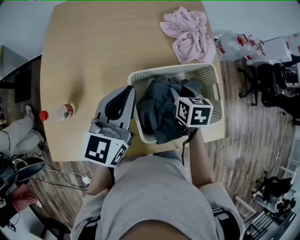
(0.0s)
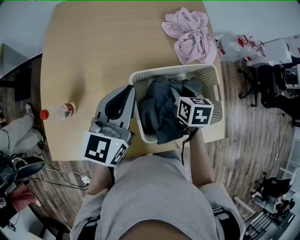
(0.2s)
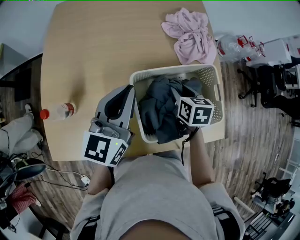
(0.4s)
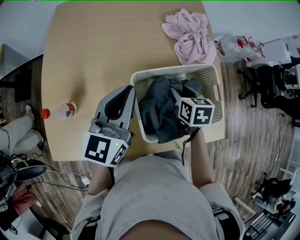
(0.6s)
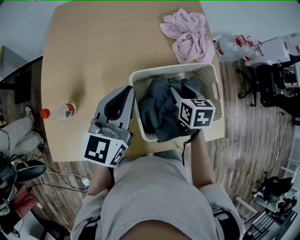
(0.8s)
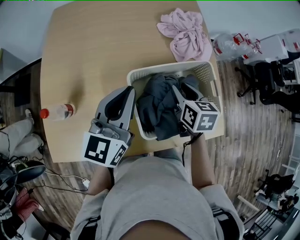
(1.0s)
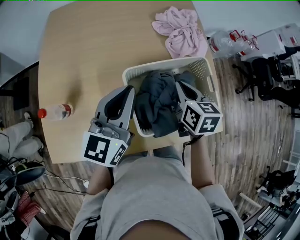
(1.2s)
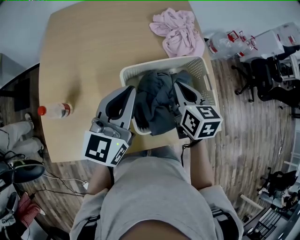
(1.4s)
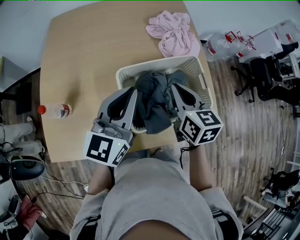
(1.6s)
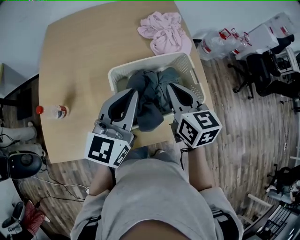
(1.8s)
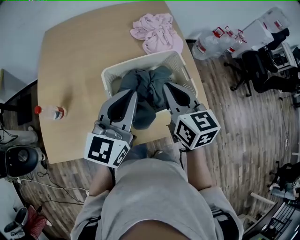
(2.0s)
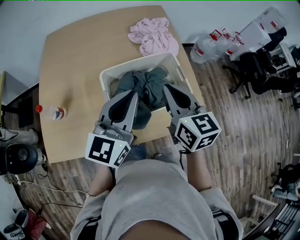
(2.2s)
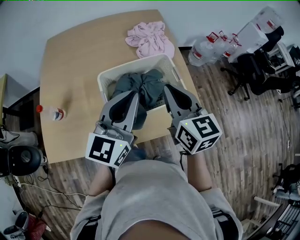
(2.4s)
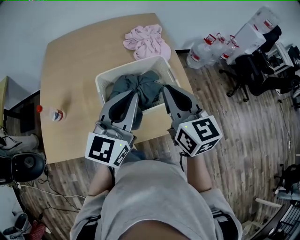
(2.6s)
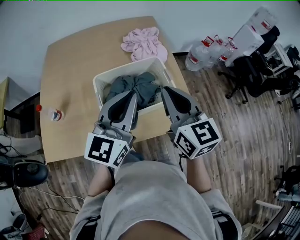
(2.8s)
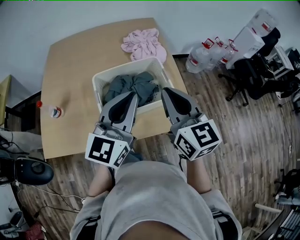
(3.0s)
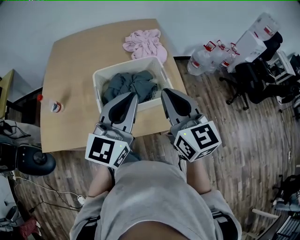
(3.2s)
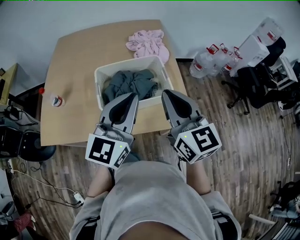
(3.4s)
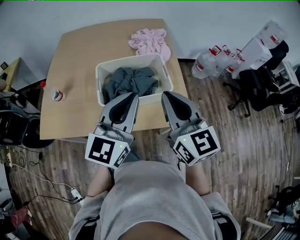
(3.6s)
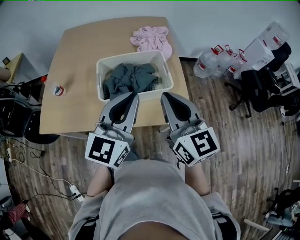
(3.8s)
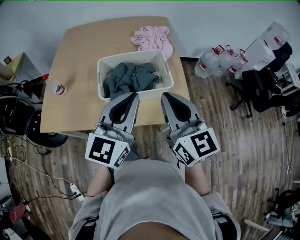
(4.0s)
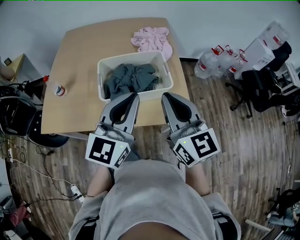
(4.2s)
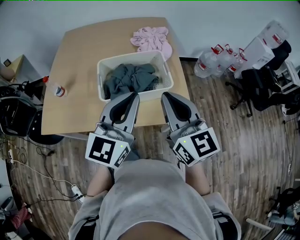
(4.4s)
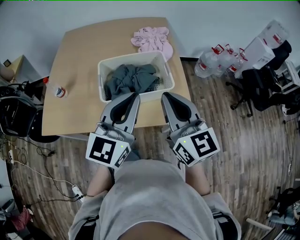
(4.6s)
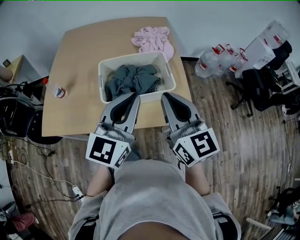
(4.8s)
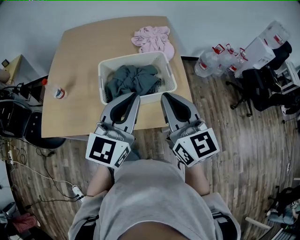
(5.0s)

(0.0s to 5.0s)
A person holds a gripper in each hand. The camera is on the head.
0.0s - 1.6s: The left gripper heads to the right, covering about 5 cm. The right gripper shifts roughly 15 cm upward and backward, swivels roughly 20 degrees, and closes its fingers.
1.6s - 3.4s: The right gripper heads backward, upward and to the right, covering approximately 25 cm, and swivels approximately 30 degrees. Meanwhile the left gripper travels to the right, backward and upward by approximately 25 cm.
3.4s - 5.0s: The grippers make only small movements.

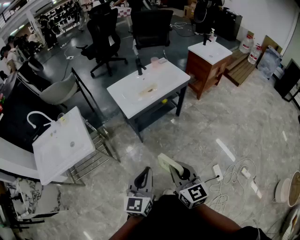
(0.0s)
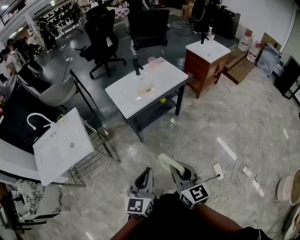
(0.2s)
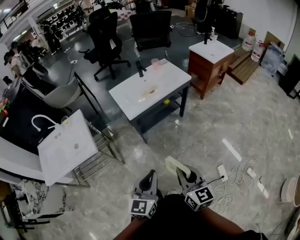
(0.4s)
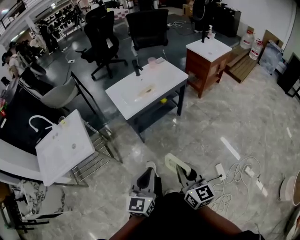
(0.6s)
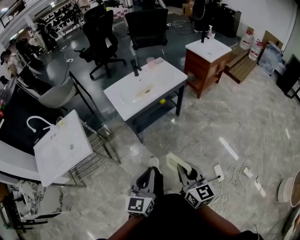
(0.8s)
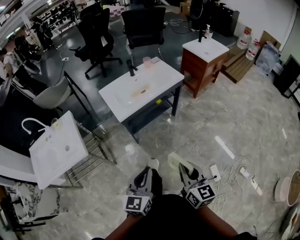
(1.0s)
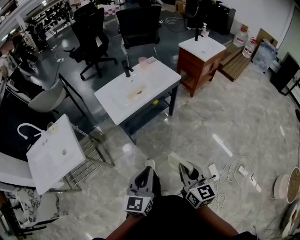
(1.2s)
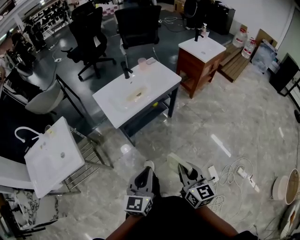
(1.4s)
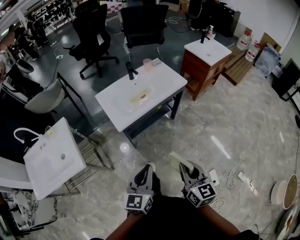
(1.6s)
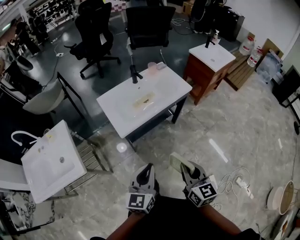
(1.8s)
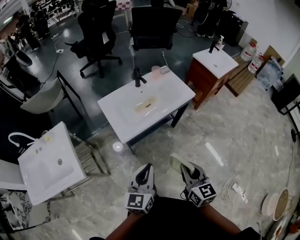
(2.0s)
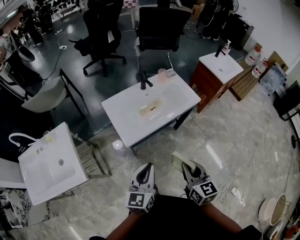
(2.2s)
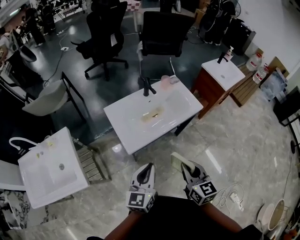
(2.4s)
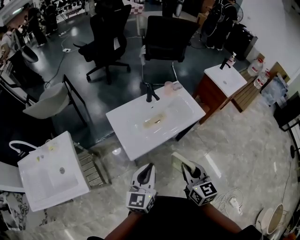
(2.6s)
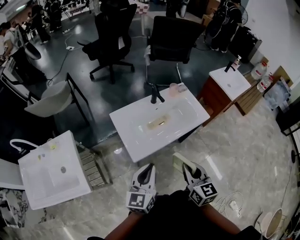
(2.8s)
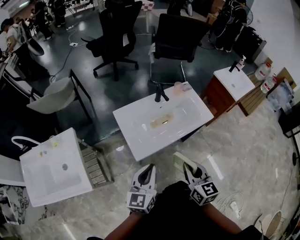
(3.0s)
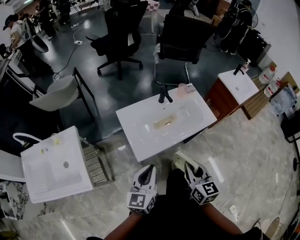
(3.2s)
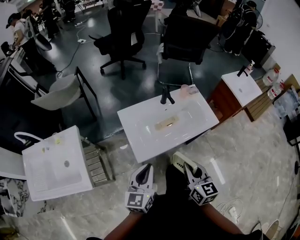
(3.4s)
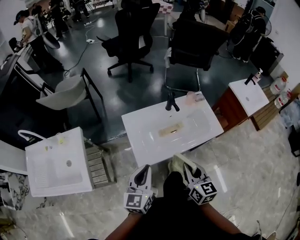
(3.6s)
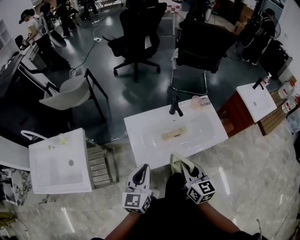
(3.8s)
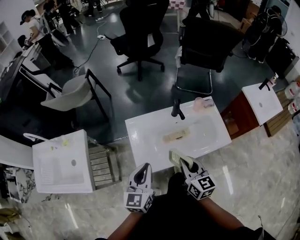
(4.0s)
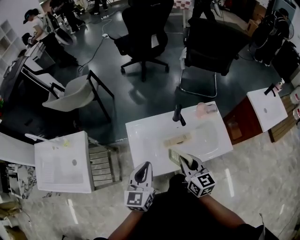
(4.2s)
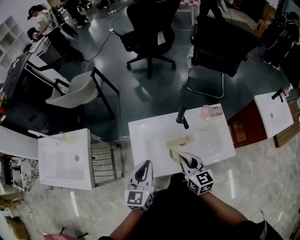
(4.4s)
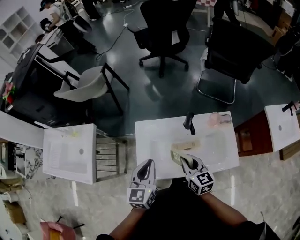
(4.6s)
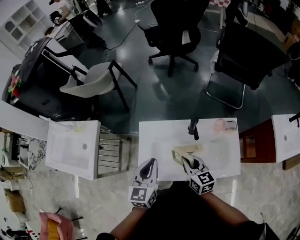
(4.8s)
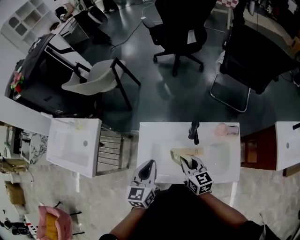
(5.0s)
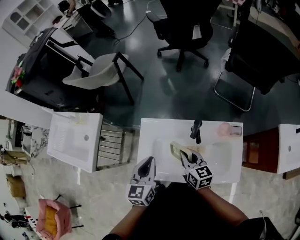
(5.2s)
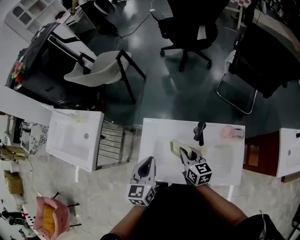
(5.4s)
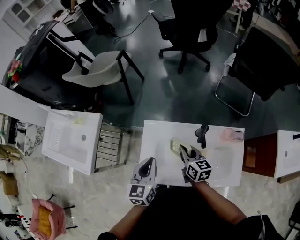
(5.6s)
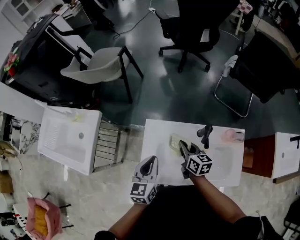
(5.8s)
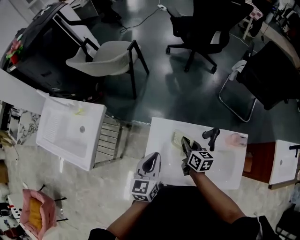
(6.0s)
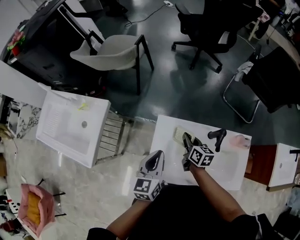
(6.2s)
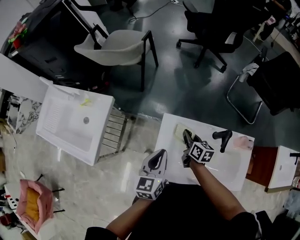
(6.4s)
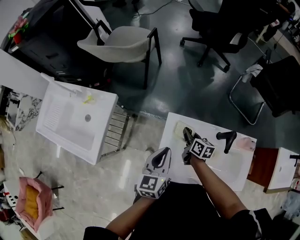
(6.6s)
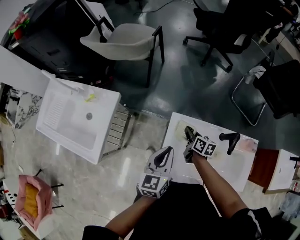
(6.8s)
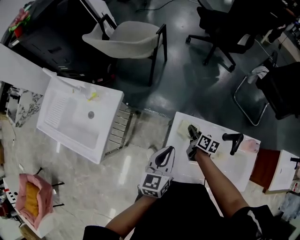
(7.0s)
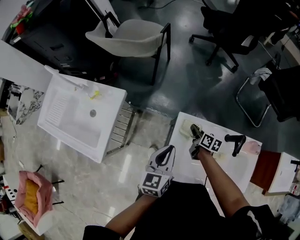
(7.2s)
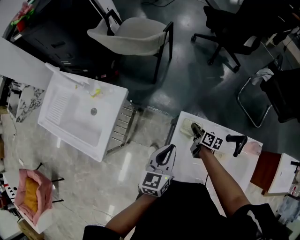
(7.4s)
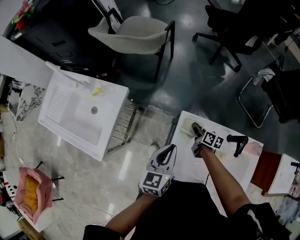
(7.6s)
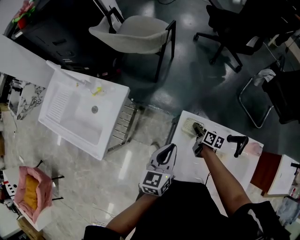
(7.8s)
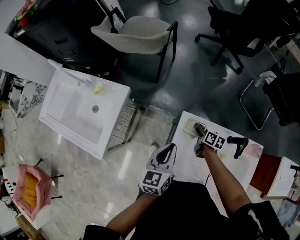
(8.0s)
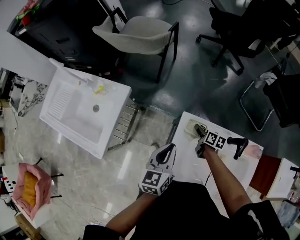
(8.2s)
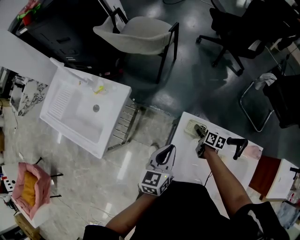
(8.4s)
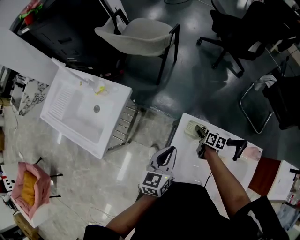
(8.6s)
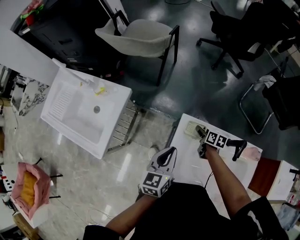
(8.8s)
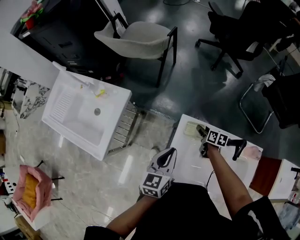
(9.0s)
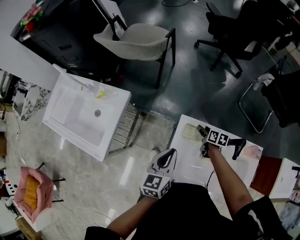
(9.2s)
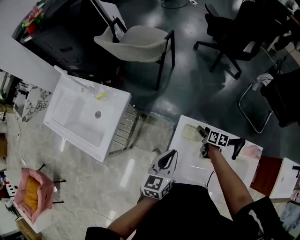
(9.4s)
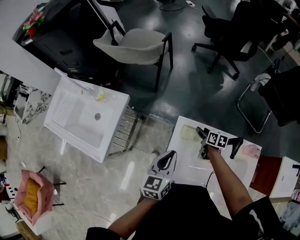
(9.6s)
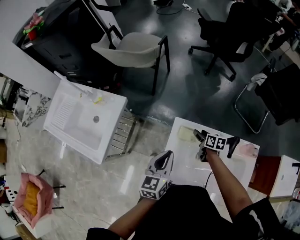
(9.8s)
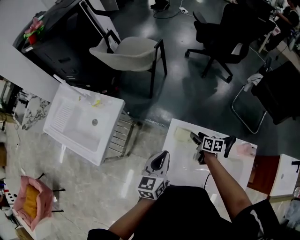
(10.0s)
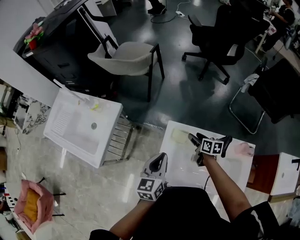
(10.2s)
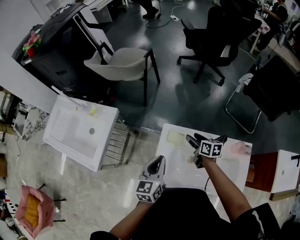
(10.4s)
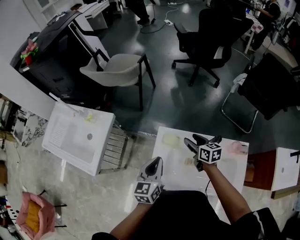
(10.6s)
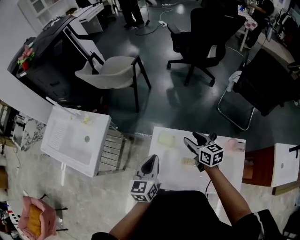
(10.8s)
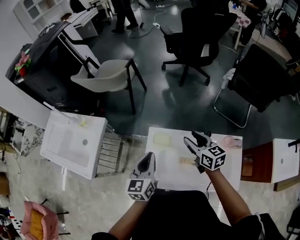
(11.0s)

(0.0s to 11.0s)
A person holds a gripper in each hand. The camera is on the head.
0.0s - 1.6s: The right gripper goes some 15 cm forward and to the right. Meanwhile the left gripper travels forward by some 15 cm.
1.6s - 3.2s: The right gripper heads forward, covering some 30 cm, while the left gripper travels forward and to the left by approximately 30 cm.
3.2s - 4.8s: The left gripper moves approximately 25 cm, and changes its angle by roughly 30 degrees. Meanwhile the right gripper ends up some 30 cm from where it was, and rotates approximately 40 degrees.
4.8s - 6.2s: The right gripper is displaced forward, downward and to the left by some 20 cm. The left gripper is displaced to the left, forward and downward by approximately 15 cm.
6.2s - 7.8s: The right gripper heads downward, forward and to the left, covering about 15 cm. The left gripper shifts approximately 10 cm to the left.
7.8s - 9.4s: The right gripper travels to the right by about 5 cm, and opens up.
9.4s - 11.0s: The left gripper is displaced to the right and upward by approximately 10 cm. Meanwhile the right gripper travels upward by about 25 cm, and rotates roughly 40 degrees.

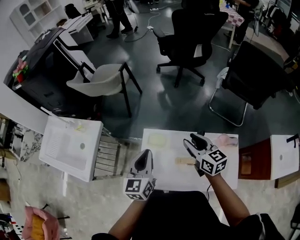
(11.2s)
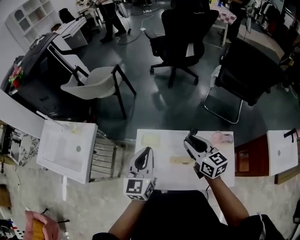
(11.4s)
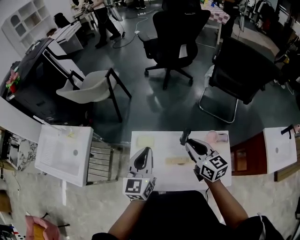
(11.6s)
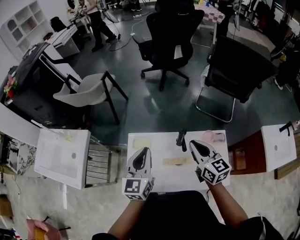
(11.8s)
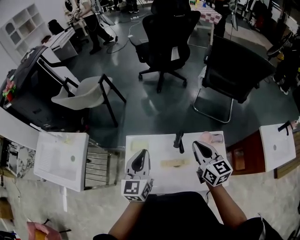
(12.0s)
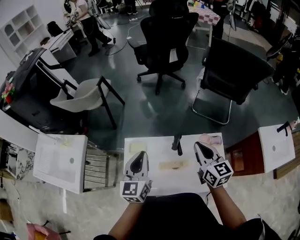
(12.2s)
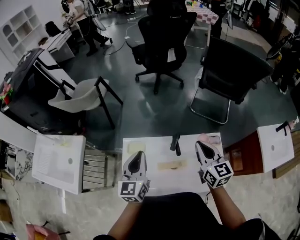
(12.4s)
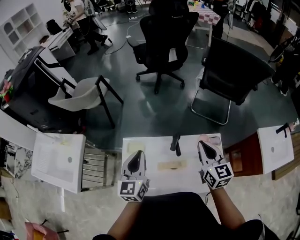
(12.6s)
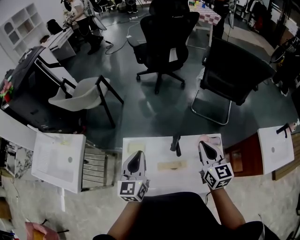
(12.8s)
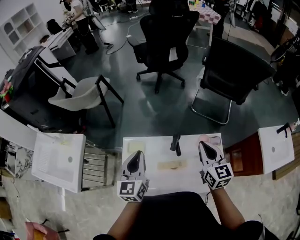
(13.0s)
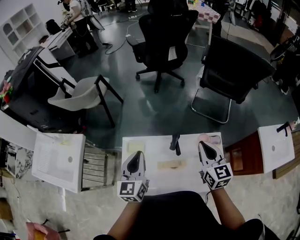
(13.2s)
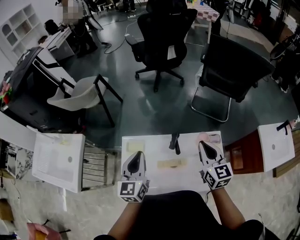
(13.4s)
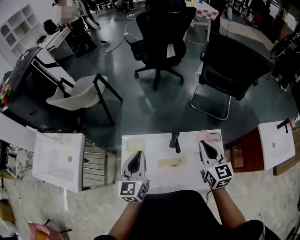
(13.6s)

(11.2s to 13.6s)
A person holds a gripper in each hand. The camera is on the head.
11.2s - 12.4s: The right gripper moves to the right, roughly 15 cm, changes its angle by about 20 degrees, and closes, while the left gripper shifts about 10 cm to the right.
12.4s - 13.6s: There are only small adjustments of the grippers.

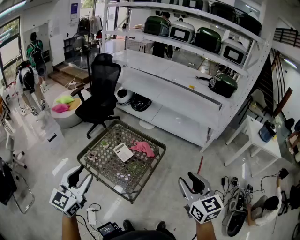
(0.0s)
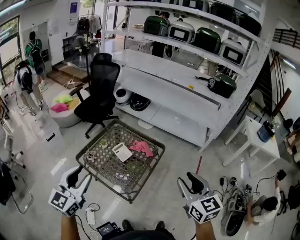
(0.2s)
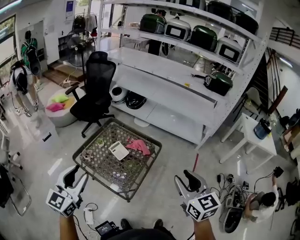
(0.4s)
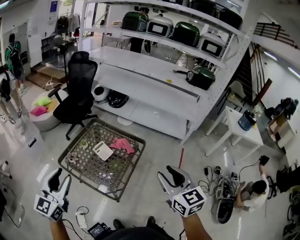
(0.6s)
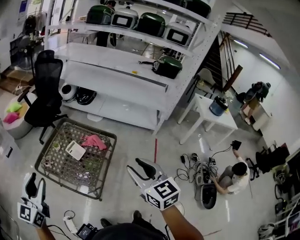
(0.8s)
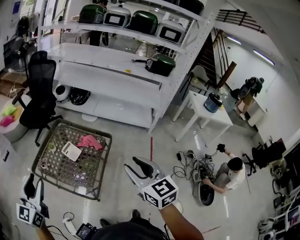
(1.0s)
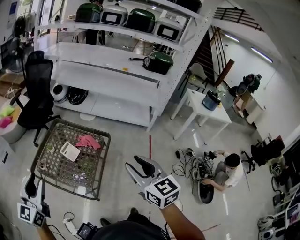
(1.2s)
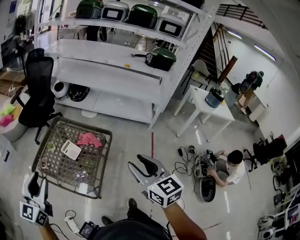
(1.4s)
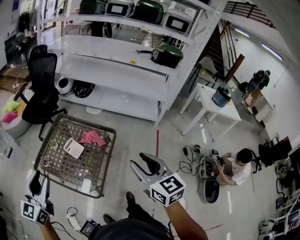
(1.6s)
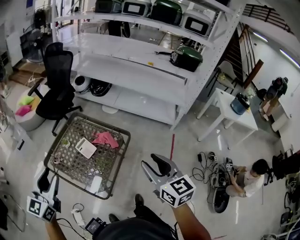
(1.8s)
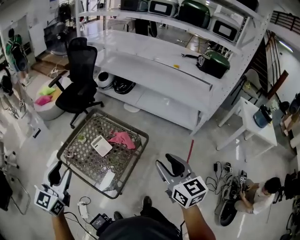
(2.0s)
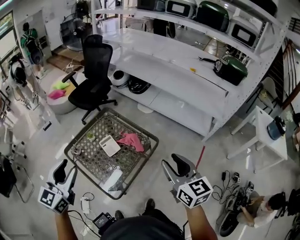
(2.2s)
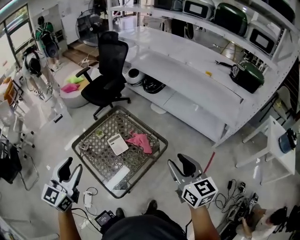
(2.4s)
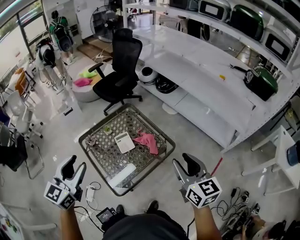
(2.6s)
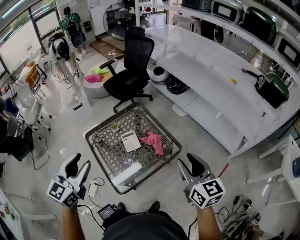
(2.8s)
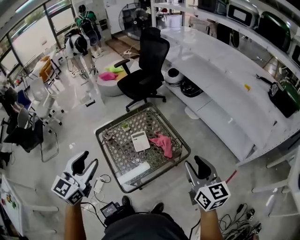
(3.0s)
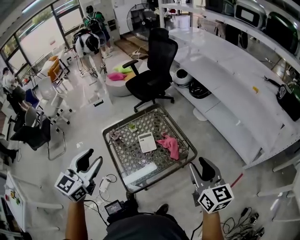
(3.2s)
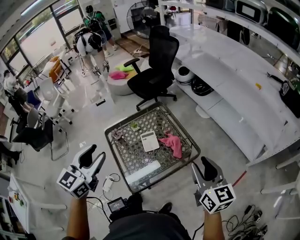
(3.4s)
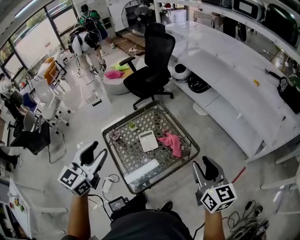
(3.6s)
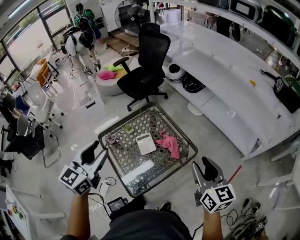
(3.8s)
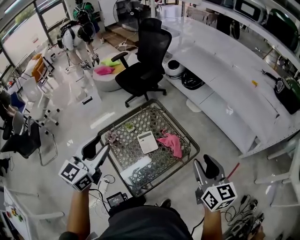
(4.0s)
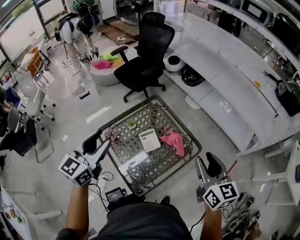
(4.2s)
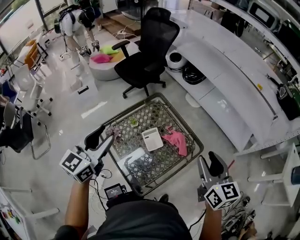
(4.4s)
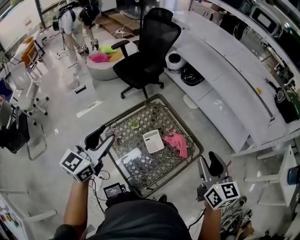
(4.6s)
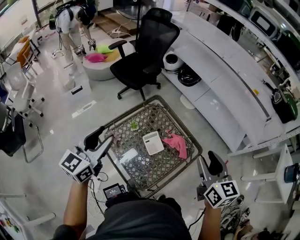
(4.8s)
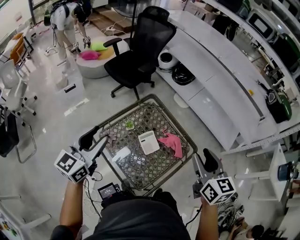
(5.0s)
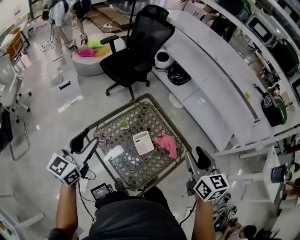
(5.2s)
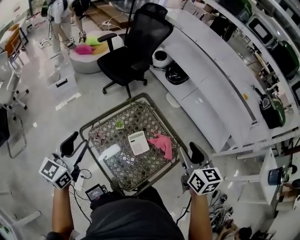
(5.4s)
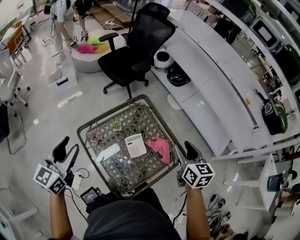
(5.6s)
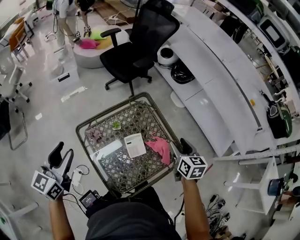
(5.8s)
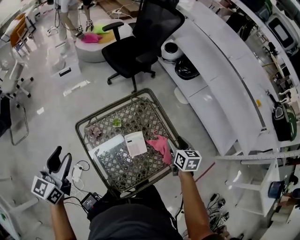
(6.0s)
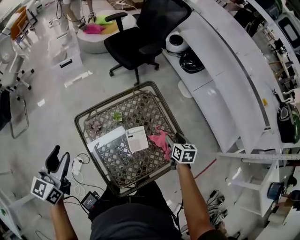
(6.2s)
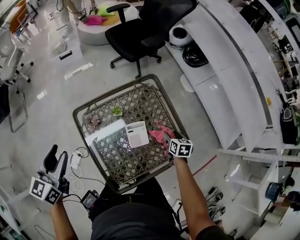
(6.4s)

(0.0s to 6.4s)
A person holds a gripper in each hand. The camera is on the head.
0.0s - 1.6s: The left gripper shifts some 5 cm forward; the right gripper changes place by some 5 cm.
1.6s - 3.2s: The right gripper changes place by some 25 cm, and turns by roughly 30 degrees, while the left gripper changes place by roughly 10 cm, and changes its angle by approximately 30 degrees.
3.2s - 4.8s: The right gripper is displaced to the left and forward by some 20 cm; the left gripper shifts about 25 cm forward and to the left.
4.8s - 6.4s: The right gripper goes approximately 40 cm downward and forward, and angles its fingers downward, by roughly 40 degrees. Meanwhile the left gripper is displaced downward and to the left by approximately 10 cm, and rotates about 30 degrees.
